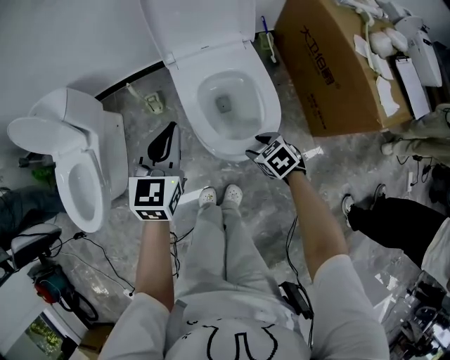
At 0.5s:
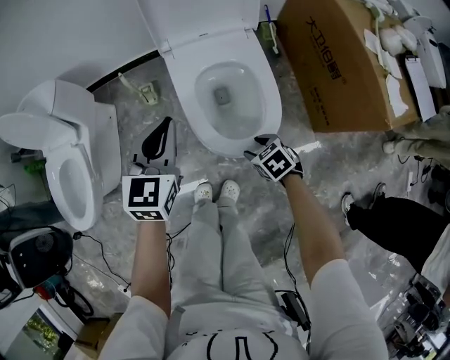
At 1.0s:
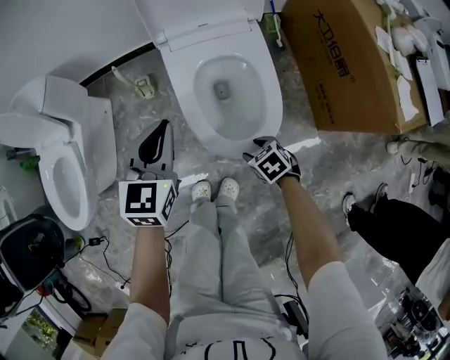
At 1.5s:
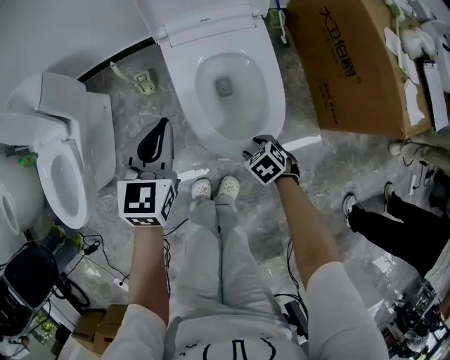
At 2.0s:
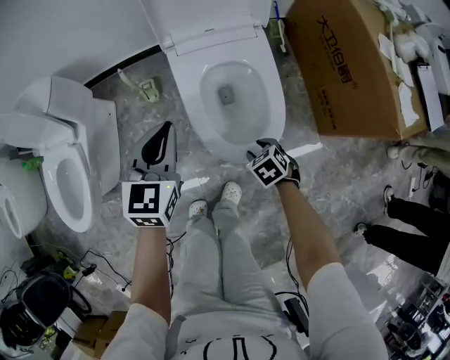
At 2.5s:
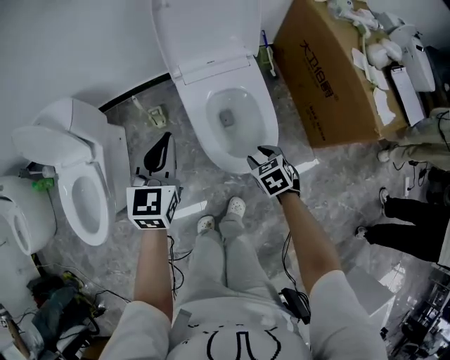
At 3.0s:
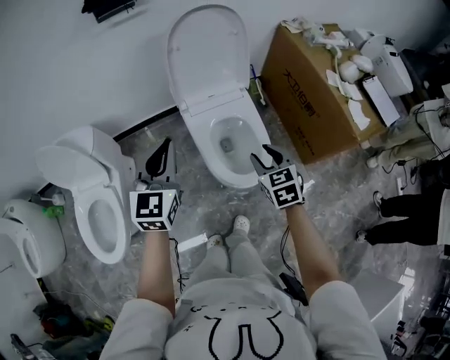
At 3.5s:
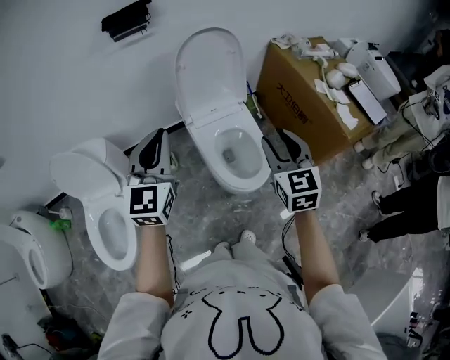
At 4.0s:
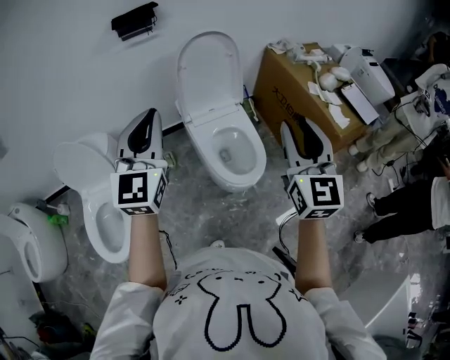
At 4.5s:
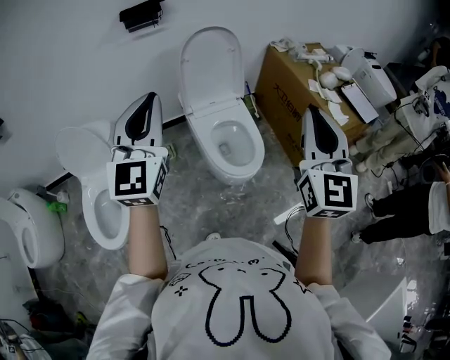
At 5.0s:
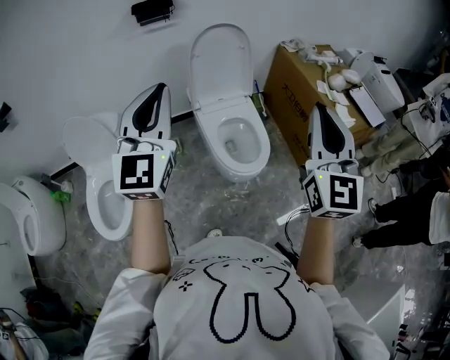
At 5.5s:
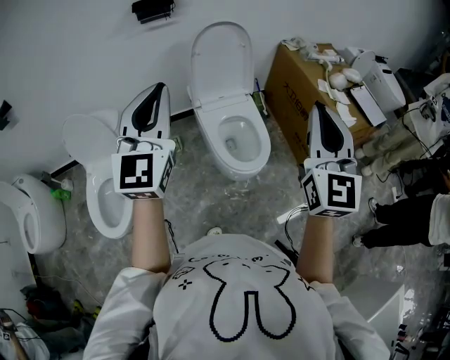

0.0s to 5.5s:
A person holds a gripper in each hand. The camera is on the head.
0.0s to 2.0s: The grippers both shift downward by some 10 cm.
2.0s to 3.5s: The left gripper heads upward, covering roughly 35 cm, and changes its angle by about 30 degrees. Meanwhile the right gripper is displaced upward by some 50 cm, and angles its fingers upward, by some 60 degrees.
3.5s to 5.5s: The grippers both shift upward and backward by some 20 cm. The right gripper swivels roughly 30 degrees, and closes.

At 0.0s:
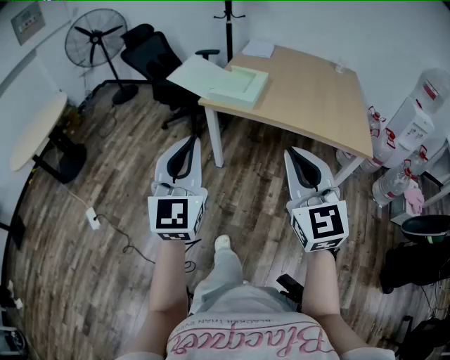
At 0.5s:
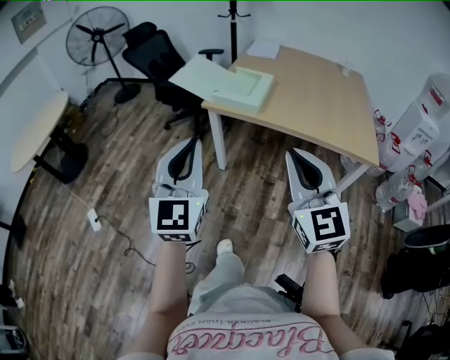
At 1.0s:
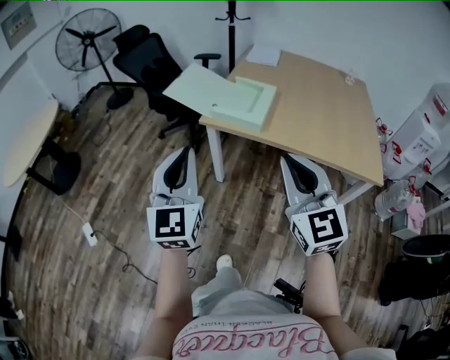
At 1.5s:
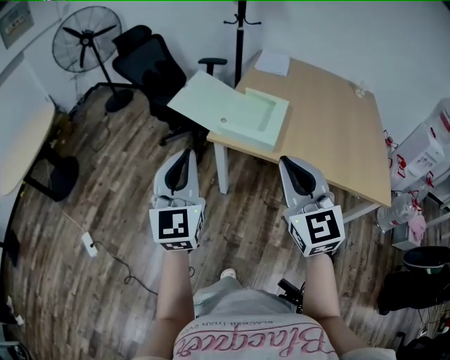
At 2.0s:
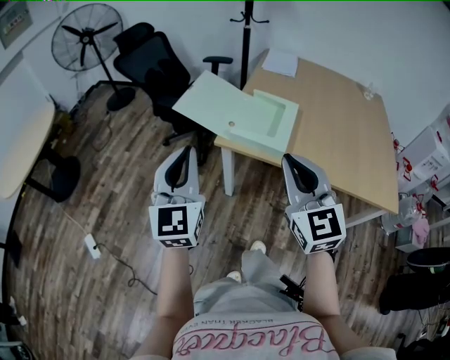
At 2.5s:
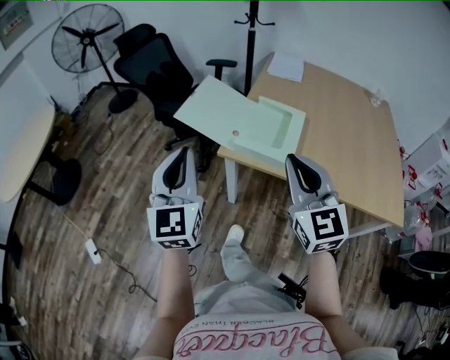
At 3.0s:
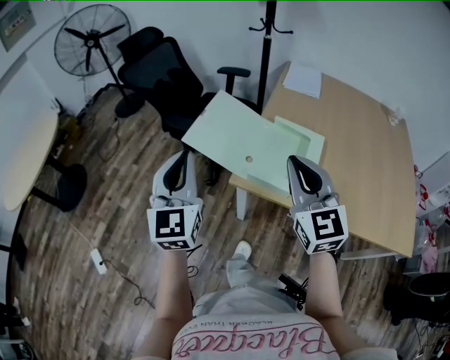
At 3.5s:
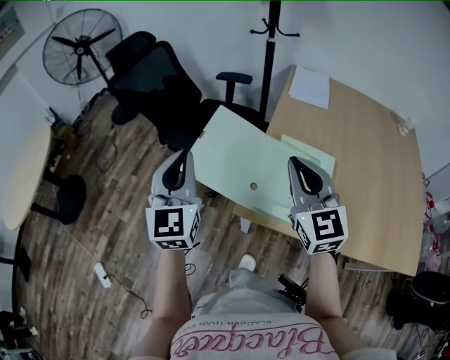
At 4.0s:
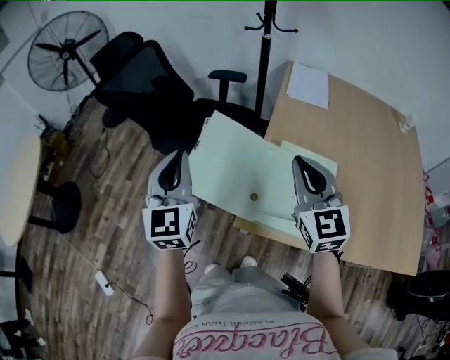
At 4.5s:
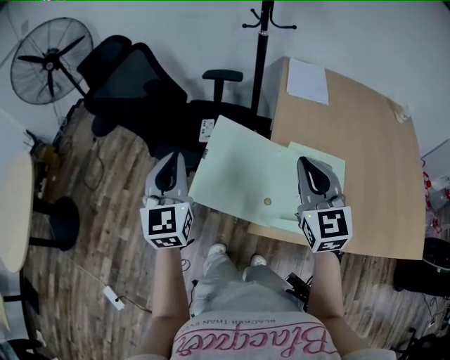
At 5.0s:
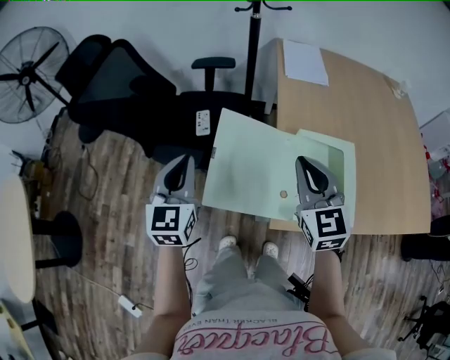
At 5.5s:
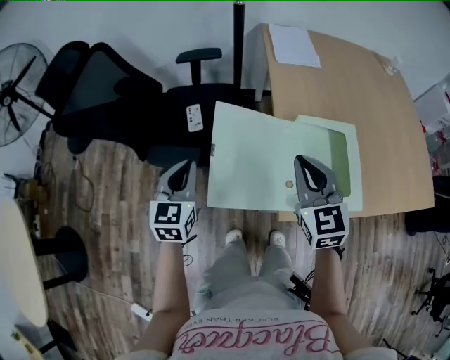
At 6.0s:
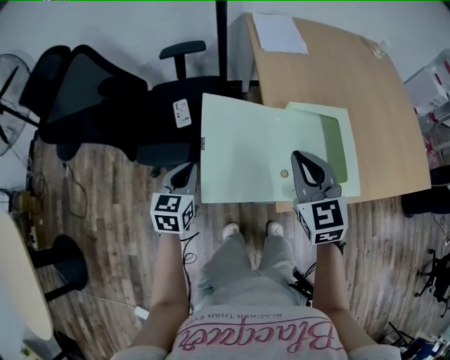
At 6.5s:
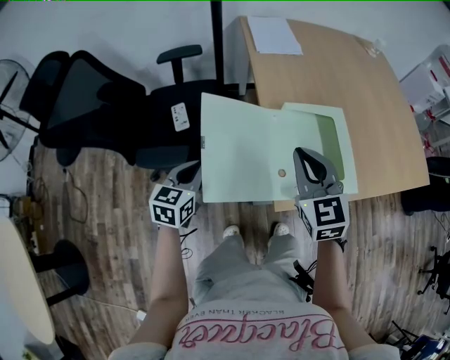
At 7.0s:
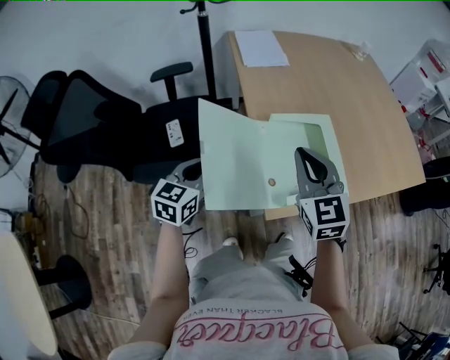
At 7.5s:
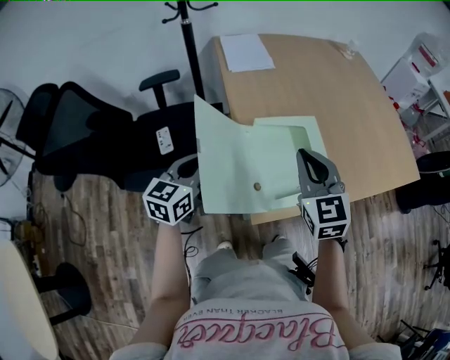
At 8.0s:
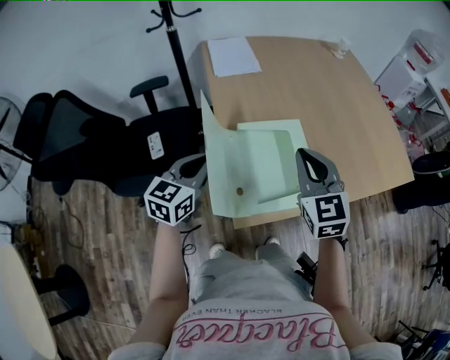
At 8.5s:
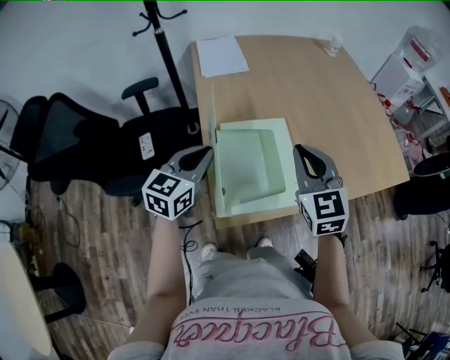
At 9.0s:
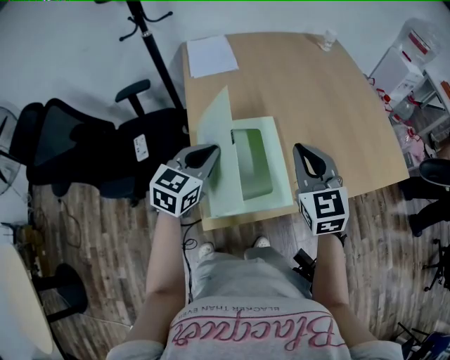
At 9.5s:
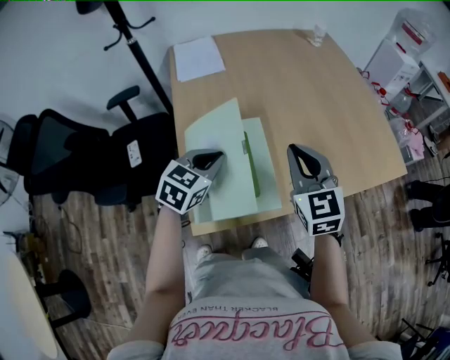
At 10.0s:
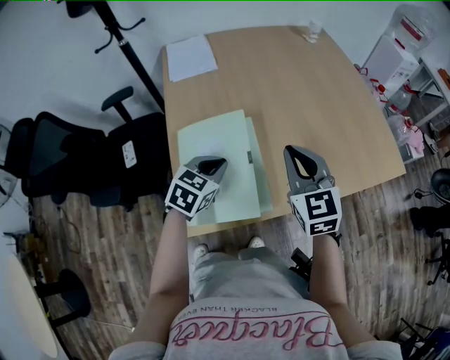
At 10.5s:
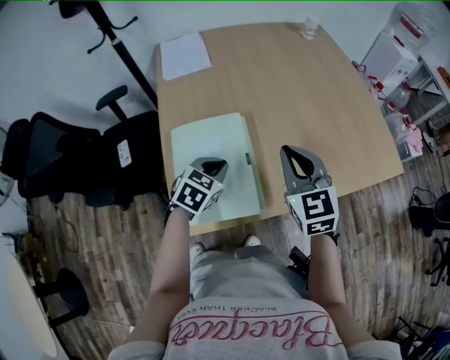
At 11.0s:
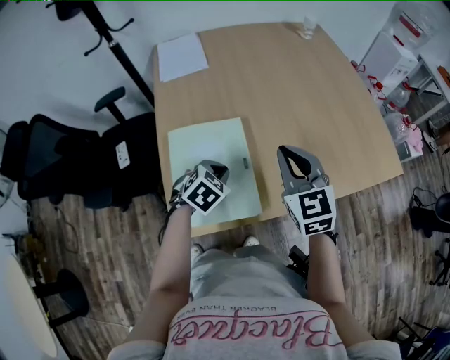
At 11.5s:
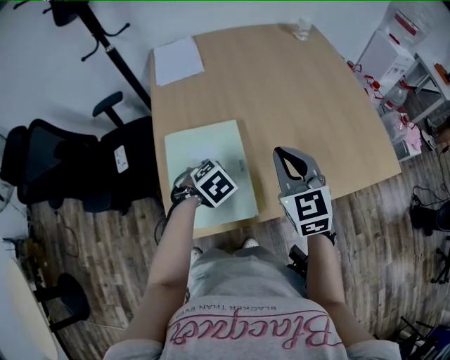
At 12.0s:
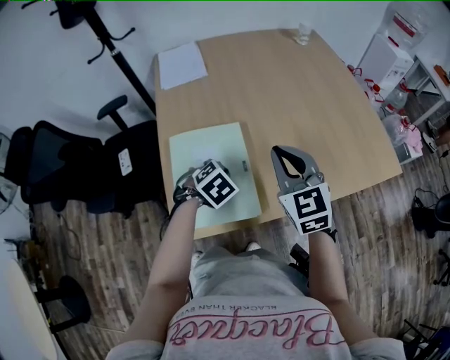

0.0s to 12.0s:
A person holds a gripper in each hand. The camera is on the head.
0.0s to 2.0s: The two grippers go about 30 cm forward.
2.0s to 4.0s: Both grippers move forward, about 35 cm.
4.0s to 6.0s: The right gripper moves downward, approximately 10 cm, and changes its angle by roughly 30 degrees. The left gripper shifts roughly 25 cm downward, and changes its angle by about 50 degrees.
6.0s to 8.0s: The left gripper moves to the right, upward and forward, about 25 cm, and rotates roughly 20 degrees, while the right gripper shifts about 15 cm to the right.
8.0s to 10.0s: The left gripper travels to the right by approximately 20 cm, and rotates some 20 degrees. The right gripper is displaced to the right and forward by roughly 15 cm.
10.0s to 12.0s: The left gripper heads downward, covering some 5 cm, and swivels roughly 30 degrees.

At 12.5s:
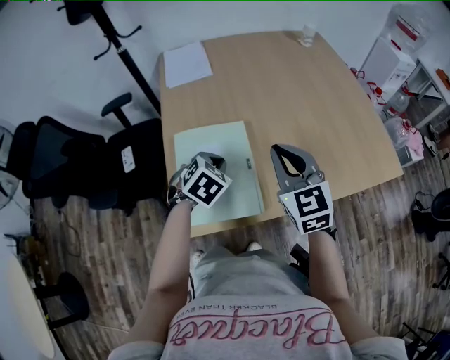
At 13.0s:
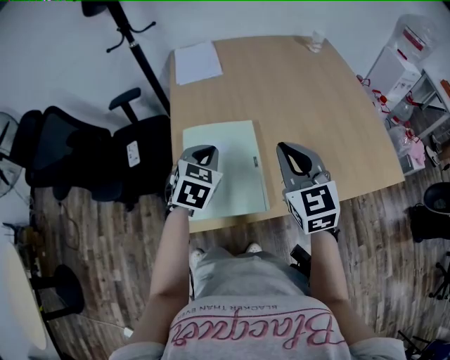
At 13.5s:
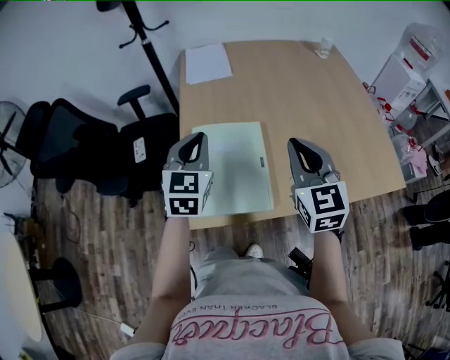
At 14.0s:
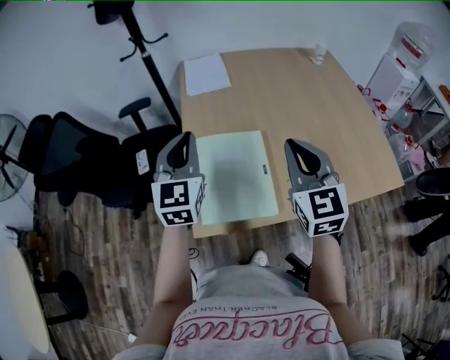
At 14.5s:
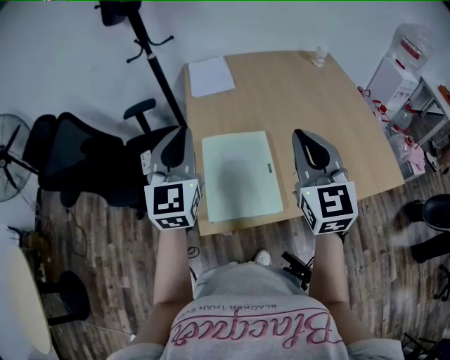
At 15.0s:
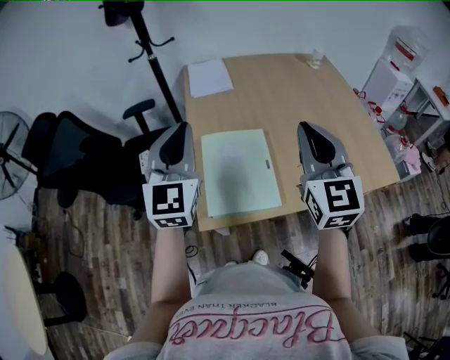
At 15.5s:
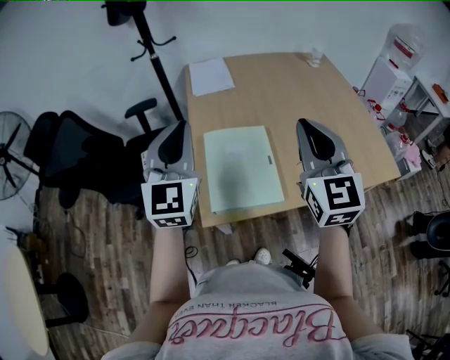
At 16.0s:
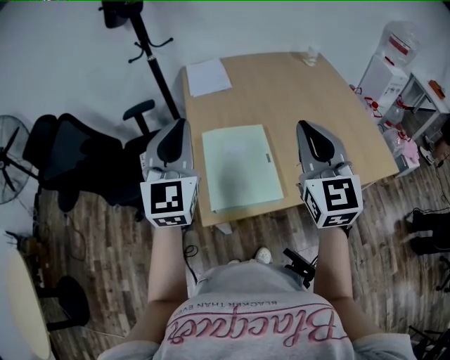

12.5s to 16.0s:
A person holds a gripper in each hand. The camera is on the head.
12.5s to 14.5s: The left gripper is displaced upward and to the left by roughly 30 cm, and points its fingers approximately 50 degrees further upward; the right gripper is displaced upward by about 15 cm.
14.5s to 16.0s: The right gripper moves about 5 cm. The left gripper ends up about 5 cm from where it was.

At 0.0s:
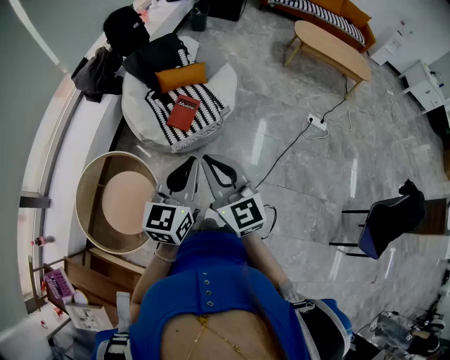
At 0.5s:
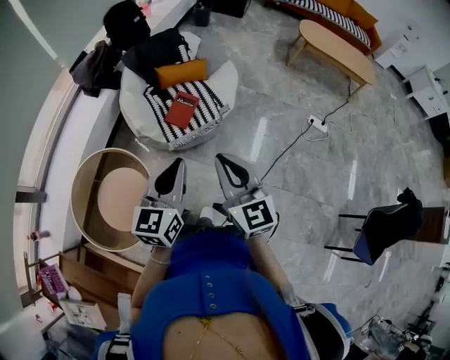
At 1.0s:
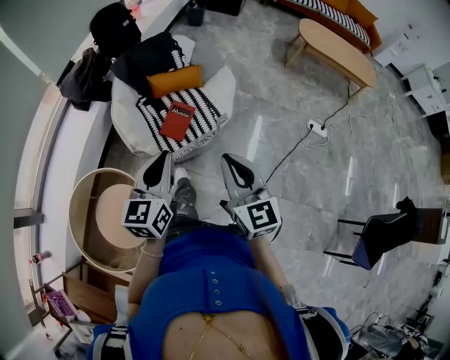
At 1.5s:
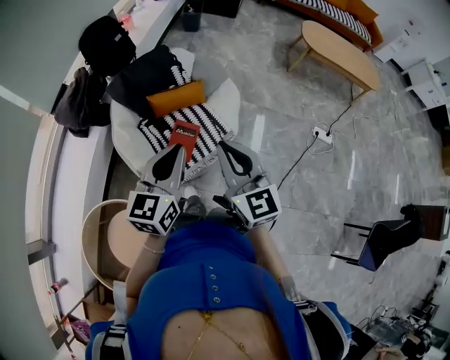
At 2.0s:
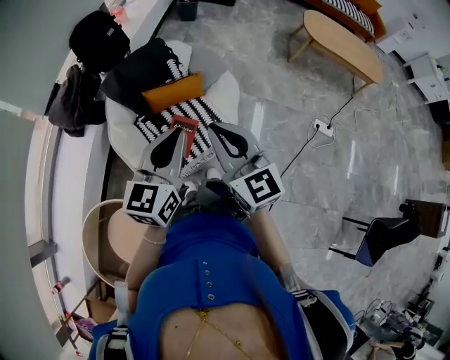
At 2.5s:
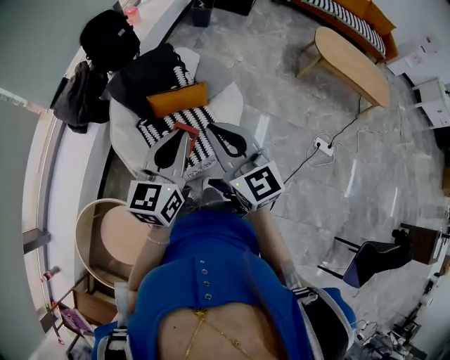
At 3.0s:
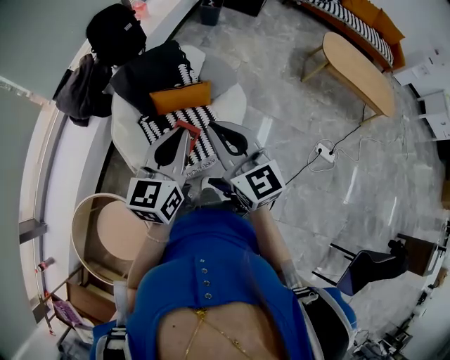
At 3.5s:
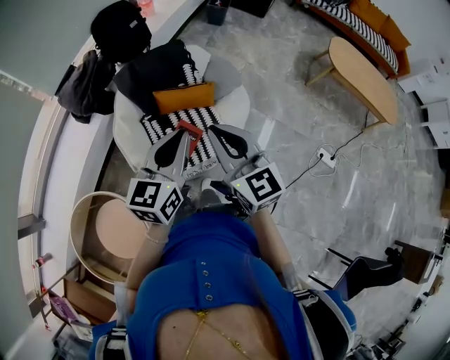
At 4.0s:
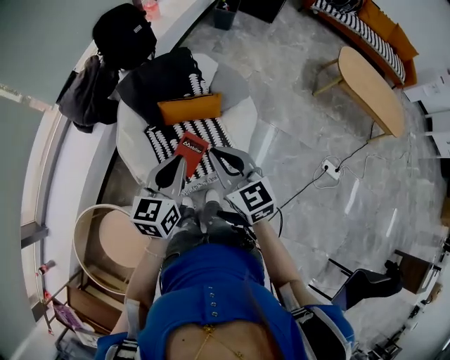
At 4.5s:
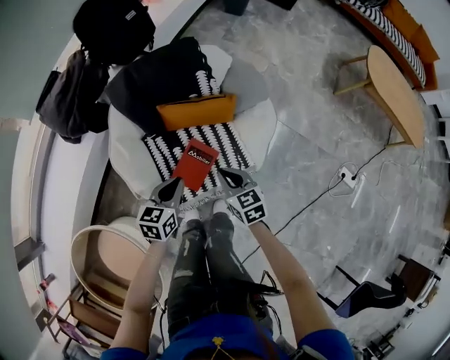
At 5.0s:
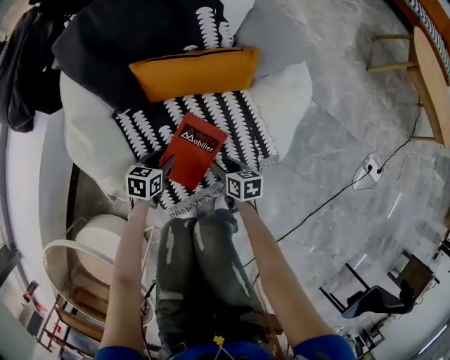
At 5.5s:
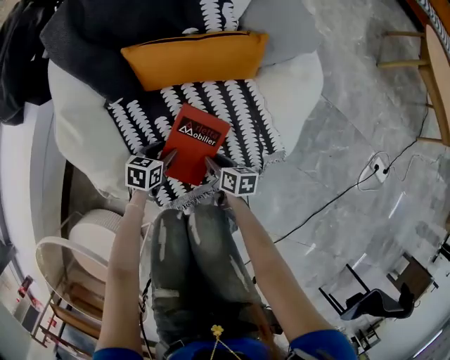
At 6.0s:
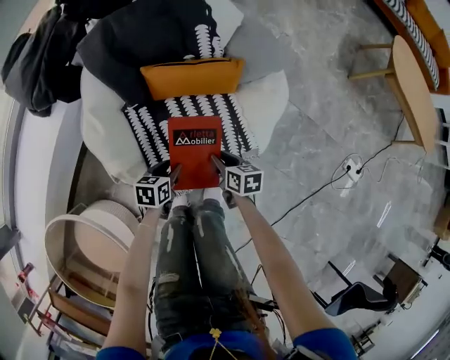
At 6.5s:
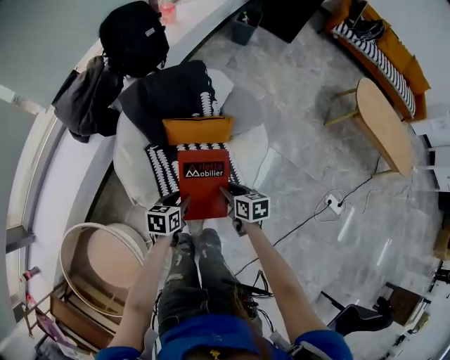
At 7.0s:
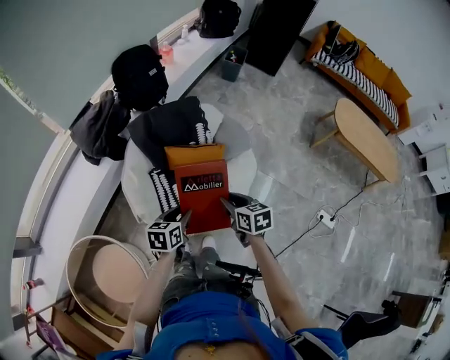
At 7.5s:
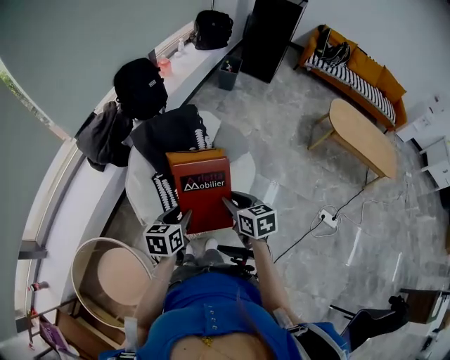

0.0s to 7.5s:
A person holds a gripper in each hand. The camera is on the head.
0.0s to 2.0s: The two grippers travel together, forward, approximately 40 cm.
2.0s to 4.0s: Both grippers travel together forward and downward, about 15 cm. The right gripper changes its angle by some 20 degrees.
4.0s to 5.5s: Both grippers travel together downward, about 80 cm. The right gripper rolls clockwise, seen from behind, by about 50 degrees, and opens its fingers. Meanwhile the left gripper tips its fingers downward by about 30 degrees, and opens its fingers.
5.5s to 7.5s: Both grippers move upward, approximately 70 cm. The left gripper turns by some 30 degrees. Meanwhile the right gripper changes its angle by roughly 40 degrees.
